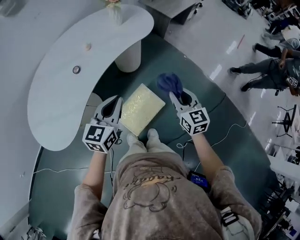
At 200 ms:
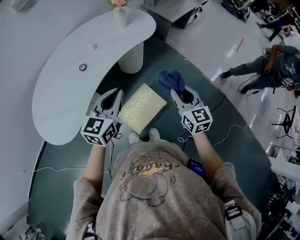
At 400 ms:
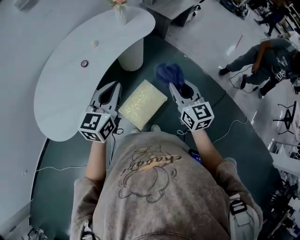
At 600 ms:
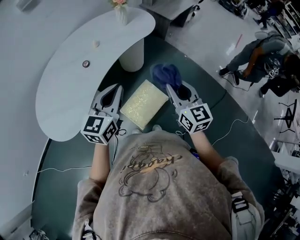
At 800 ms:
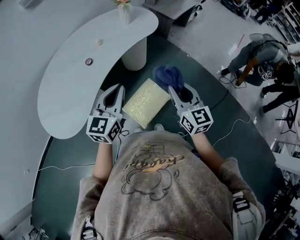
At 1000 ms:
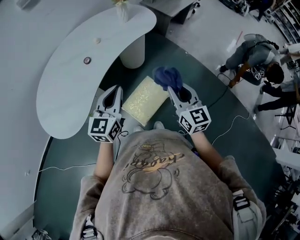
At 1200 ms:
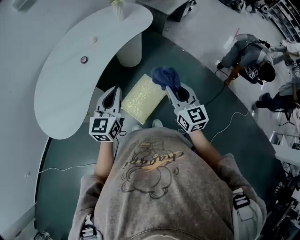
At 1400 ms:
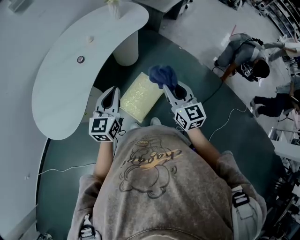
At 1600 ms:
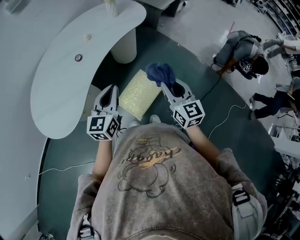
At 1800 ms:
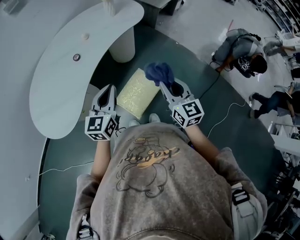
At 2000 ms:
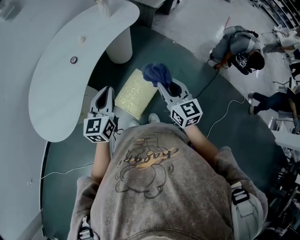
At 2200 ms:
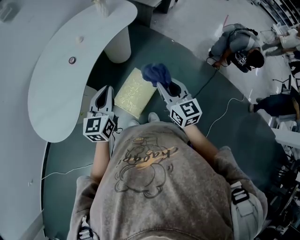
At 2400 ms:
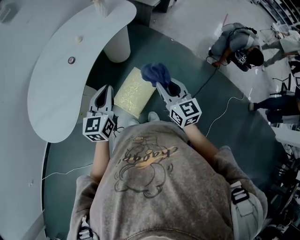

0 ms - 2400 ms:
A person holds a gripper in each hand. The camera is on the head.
0 ms - 1200 ms: The left gripper goes approximately 5 cm backward. The right gripper shifts roughly 15 cm backward, upward and to the left.
1200 ms - 2400 ms: The grippers make only small movements.

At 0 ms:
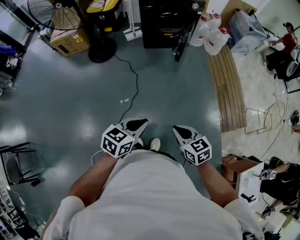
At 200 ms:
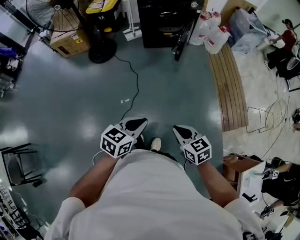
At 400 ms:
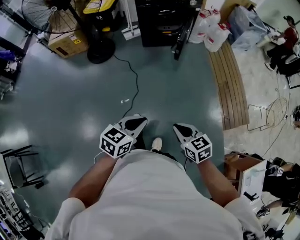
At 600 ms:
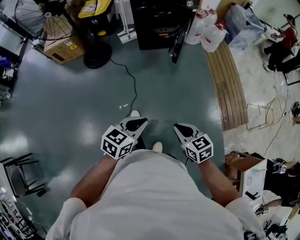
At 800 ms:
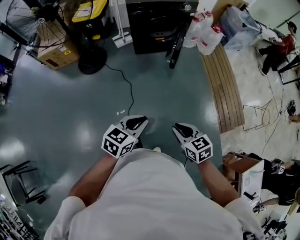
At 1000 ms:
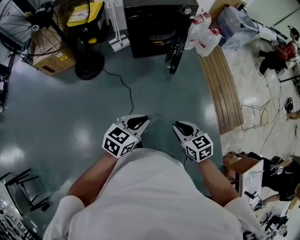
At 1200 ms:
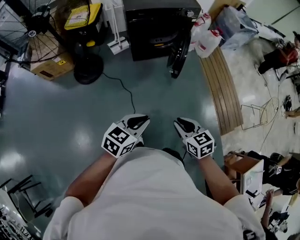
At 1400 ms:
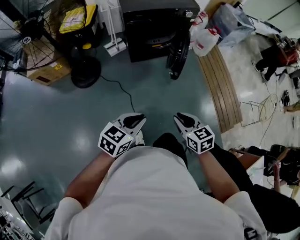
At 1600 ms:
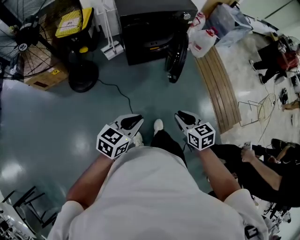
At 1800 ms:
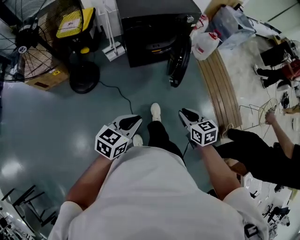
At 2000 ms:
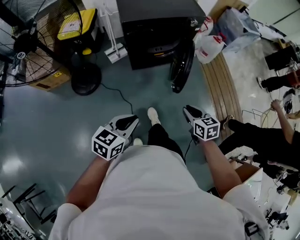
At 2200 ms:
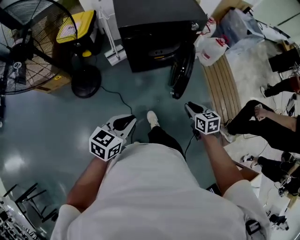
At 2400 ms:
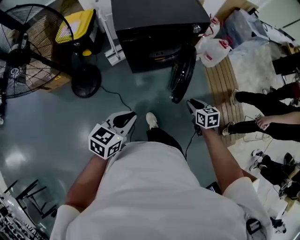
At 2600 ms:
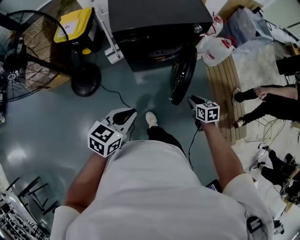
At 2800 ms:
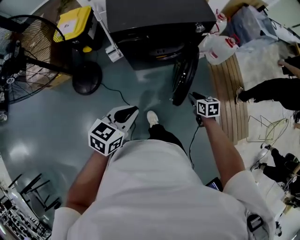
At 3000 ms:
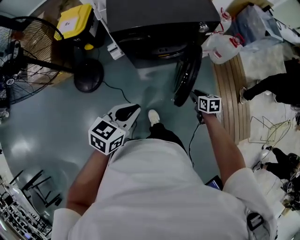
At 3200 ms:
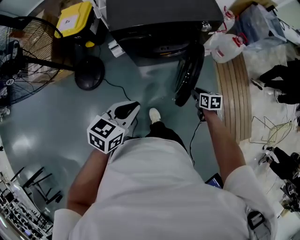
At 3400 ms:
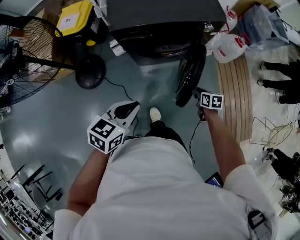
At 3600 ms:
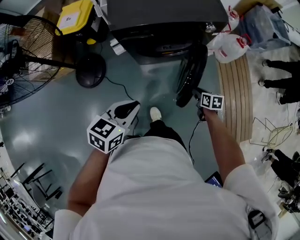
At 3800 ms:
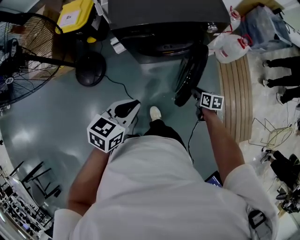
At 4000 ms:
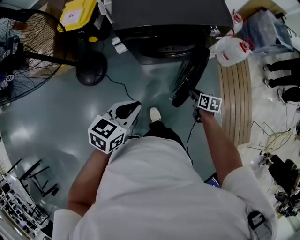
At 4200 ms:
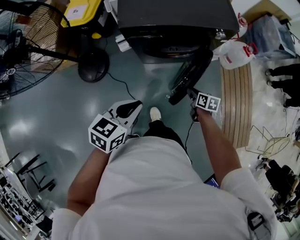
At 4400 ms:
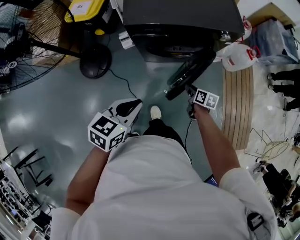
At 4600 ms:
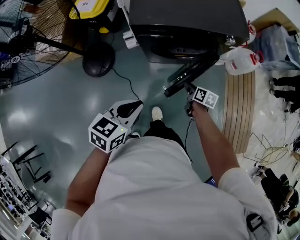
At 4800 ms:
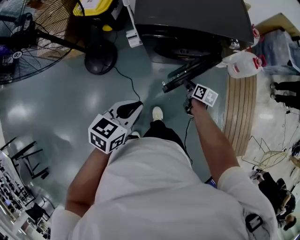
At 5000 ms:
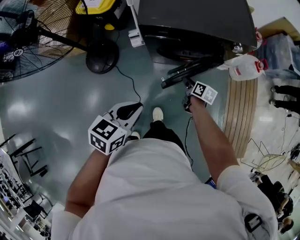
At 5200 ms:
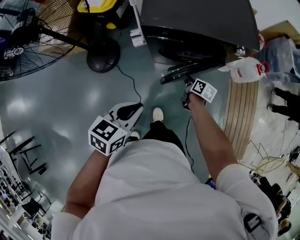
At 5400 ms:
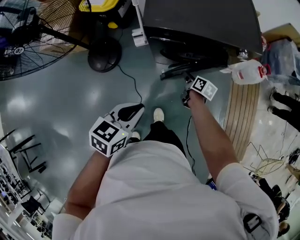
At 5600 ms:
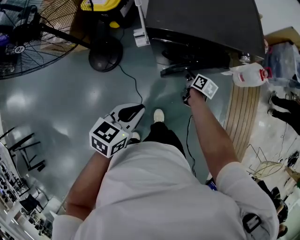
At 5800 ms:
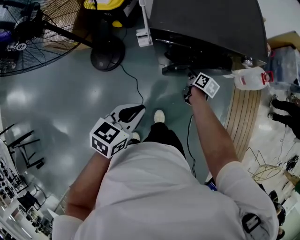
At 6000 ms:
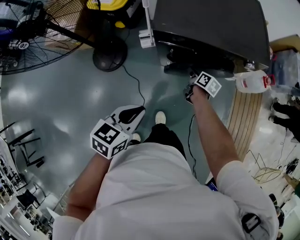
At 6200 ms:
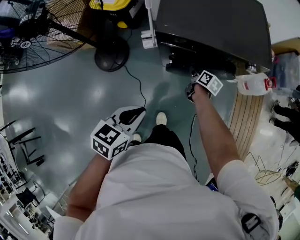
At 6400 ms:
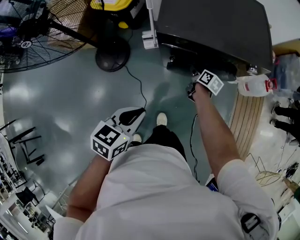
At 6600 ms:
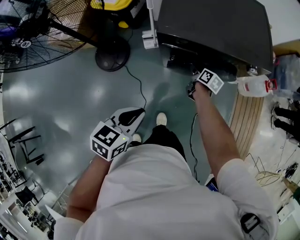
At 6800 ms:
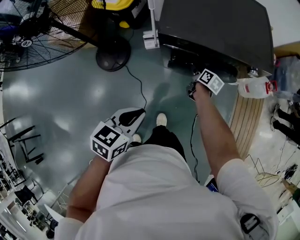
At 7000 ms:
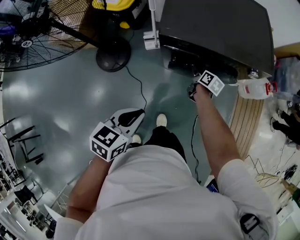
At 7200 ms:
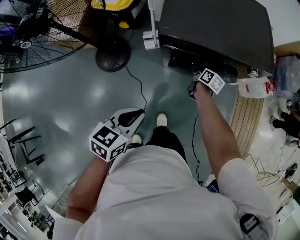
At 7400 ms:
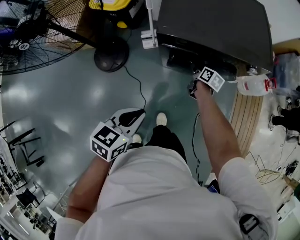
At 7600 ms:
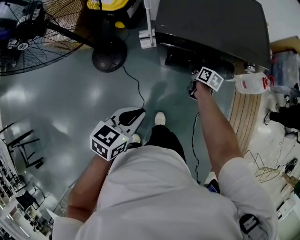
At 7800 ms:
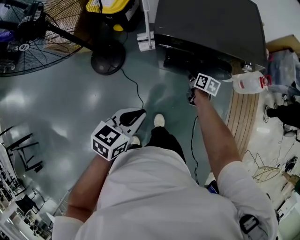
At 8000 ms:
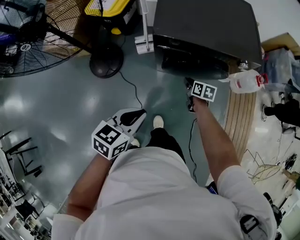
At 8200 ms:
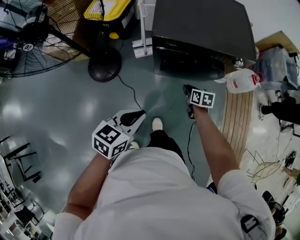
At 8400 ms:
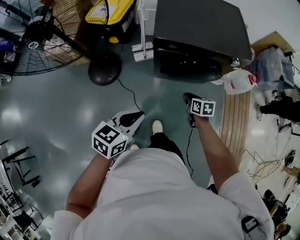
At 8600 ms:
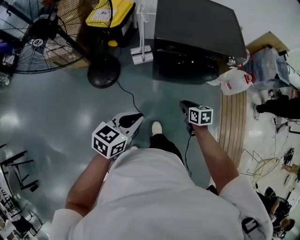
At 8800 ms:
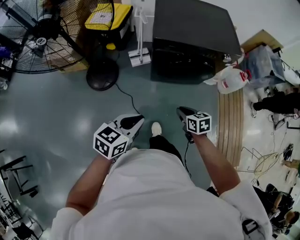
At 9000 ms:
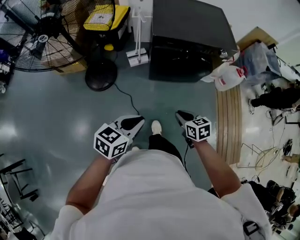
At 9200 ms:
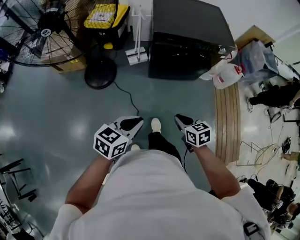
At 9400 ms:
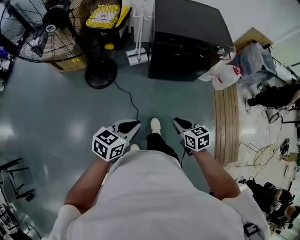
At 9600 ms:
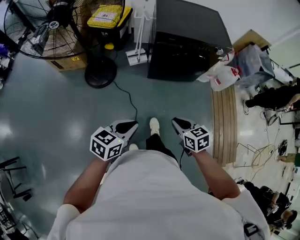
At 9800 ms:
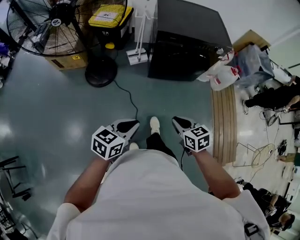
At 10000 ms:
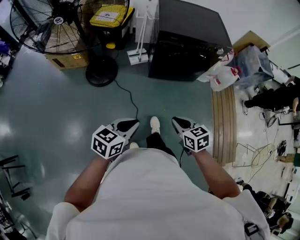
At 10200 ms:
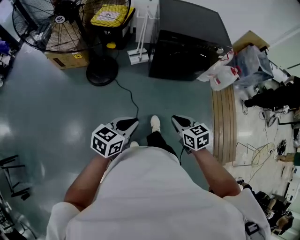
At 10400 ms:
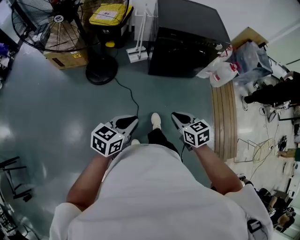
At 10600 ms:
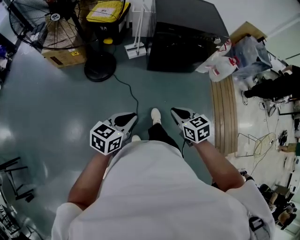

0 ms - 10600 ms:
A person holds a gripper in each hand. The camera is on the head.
0 ms - 1600 ms: The right gripper is displaced forward by about 30 cm; the left gripper heads forward and to the left, covering some 35 cm.
1600 ms - 3000 ms: The right gripper moves forward and downward, about 40 cm. Meanwhile the left gripper shifts approximately 30 cm forward.
3000 ms - 4600 ms: The left gripper moves approximately 5 cm; the right gripper moves to the left and forward, some 15 cm, and turns by approximately 20 degrees.
4600 ms - 6000 ms: The right gripper shifts about 15 cm forward and to the left; the left gripper moves approximately 5 cm.
6000 ms - 7600 ms: The grippers stay close to where they were, moving slightly.
7600 ms - 9000 ms: The right gripper shifts about 40 cm backward and upward, and rotates approximately 40 degrees. Meanwhile the left gripper is displaced backward by about 15 cm.
9000 ms - 10600 ms: The right gripper goes roughly 20 cm backward, to the left and upward. The left gripper moves backward and to the left, some 15 cm.

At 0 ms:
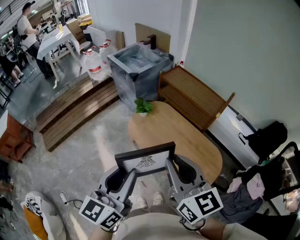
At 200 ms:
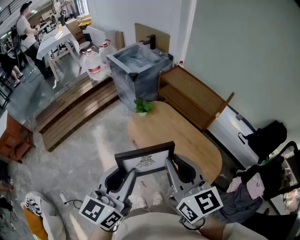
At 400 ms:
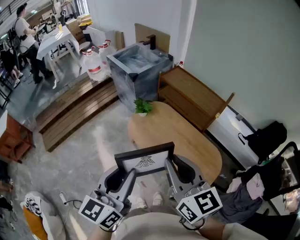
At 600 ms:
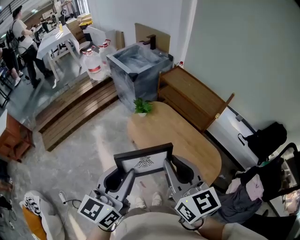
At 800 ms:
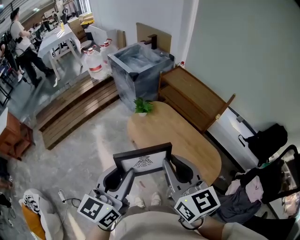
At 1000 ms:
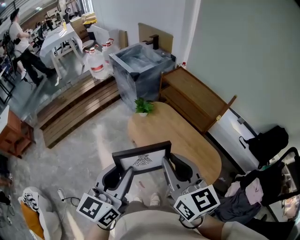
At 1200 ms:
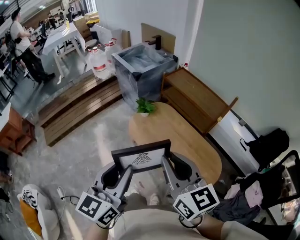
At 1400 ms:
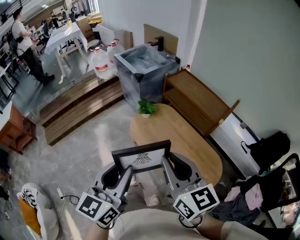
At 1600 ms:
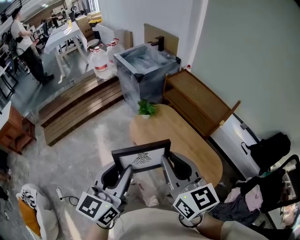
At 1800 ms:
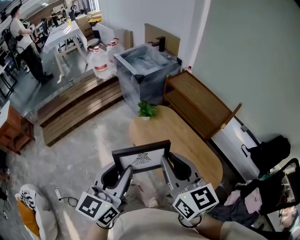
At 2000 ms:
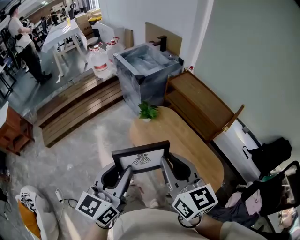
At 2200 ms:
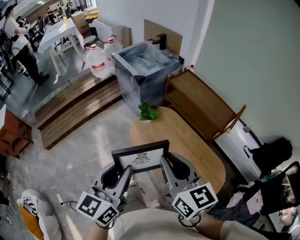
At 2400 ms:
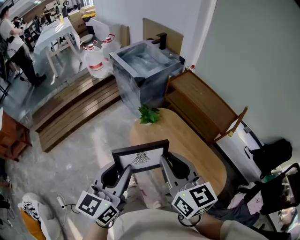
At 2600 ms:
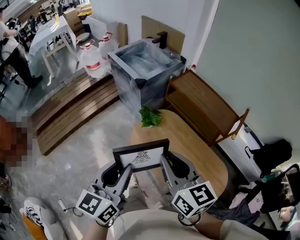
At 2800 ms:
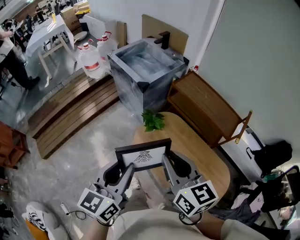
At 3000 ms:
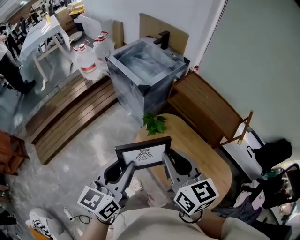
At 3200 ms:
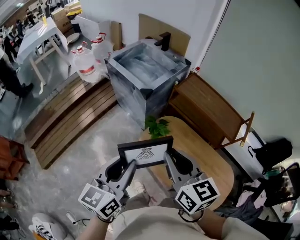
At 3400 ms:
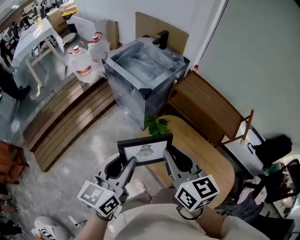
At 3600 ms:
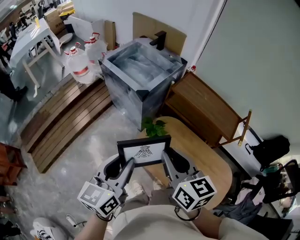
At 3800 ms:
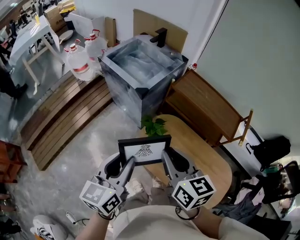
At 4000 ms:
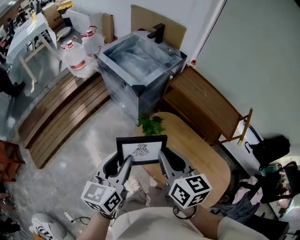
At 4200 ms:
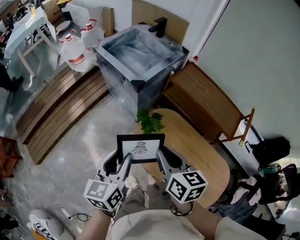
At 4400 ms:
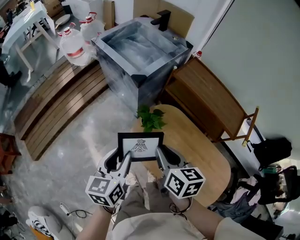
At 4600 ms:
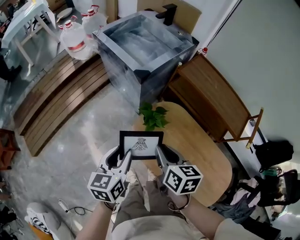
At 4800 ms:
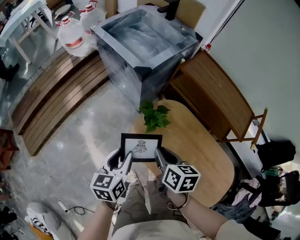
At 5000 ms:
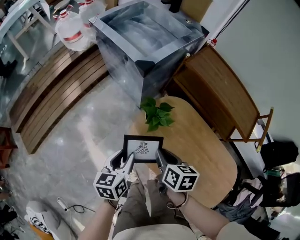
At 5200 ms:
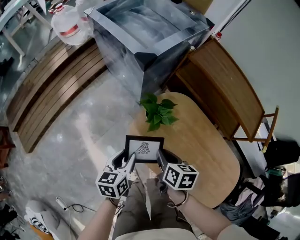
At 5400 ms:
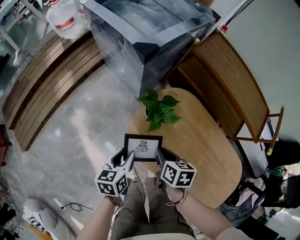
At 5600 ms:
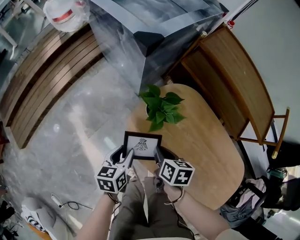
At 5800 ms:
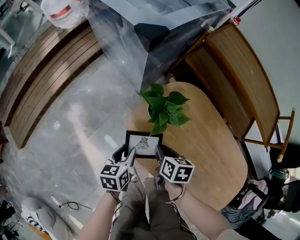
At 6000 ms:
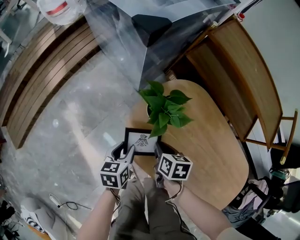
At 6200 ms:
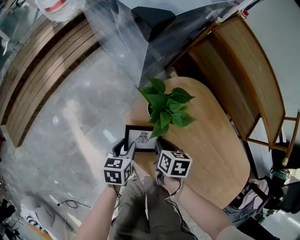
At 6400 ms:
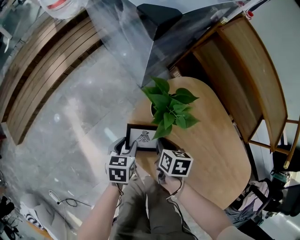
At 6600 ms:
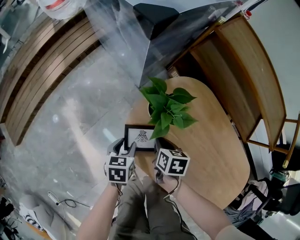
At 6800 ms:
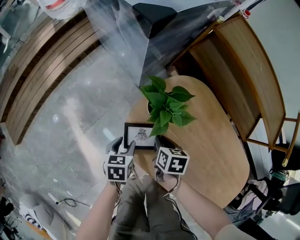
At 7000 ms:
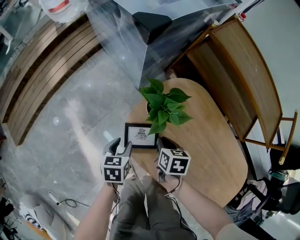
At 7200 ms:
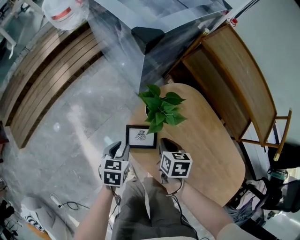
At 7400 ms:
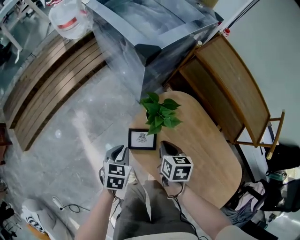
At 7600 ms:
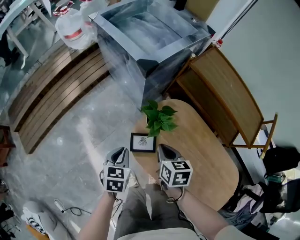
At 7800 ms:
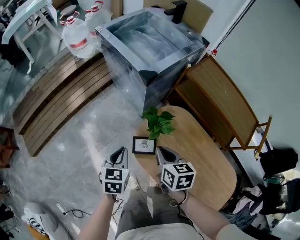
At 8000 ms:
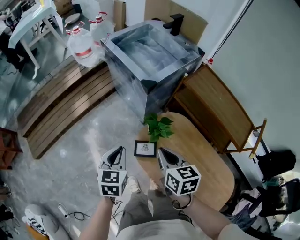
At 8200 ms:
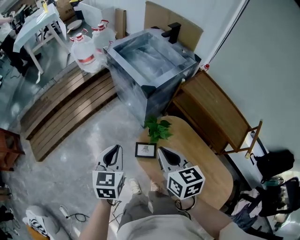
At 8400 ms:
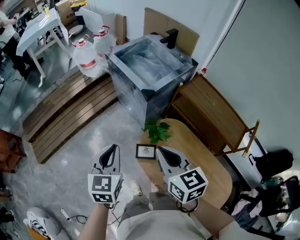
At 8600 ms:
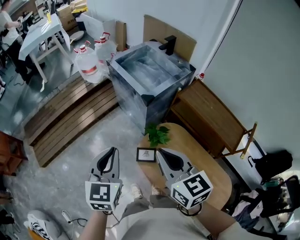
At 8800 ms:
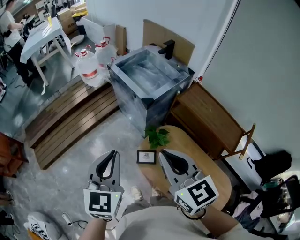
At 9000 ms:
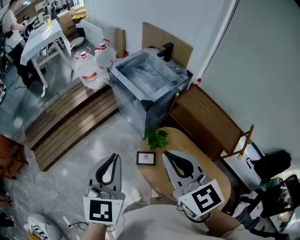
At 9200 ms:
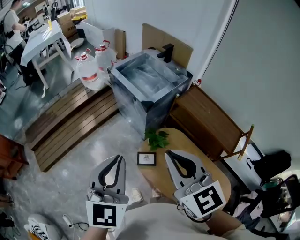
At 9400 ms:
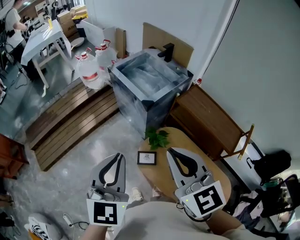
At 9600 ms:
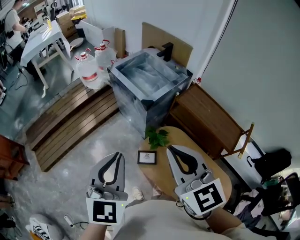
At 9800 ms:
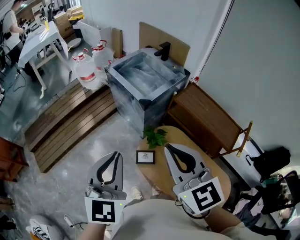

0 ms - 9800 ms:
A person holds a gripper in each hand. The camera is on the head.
0 ms - 1400 ms: The grippers move only a little.
1400 ms - 2800 ms: The two grippers go approximately 30 cm forward and to the left.
2800 ms - 4200 ms: Both grippers move forward and downward, approximately 20 cm. The right gripper turns by about 20 degrees.
4200 ms - 5600 ms: Both grippers travel together downward, some 40 cm. The left gripper swivels roughly 30 degrees, while the right gripper rotates about 30 degrees.
5600 ms - 7000 ms: Both grippers travel together downward, some 10 cm.
7000 ms - 8400 ms: Both grippers travel together upward, roughly 50 cm. The left gripper tips its fingers upward by approximately 30 degrees, and closes up. Meanwhile the right gripper angles its fingers upward, by about 40 degrees.
8400 ms - 9800 ms: Both grippers travel together upward, about 15 cm. The right gripper changes its angle by approximately 20 degrees.
